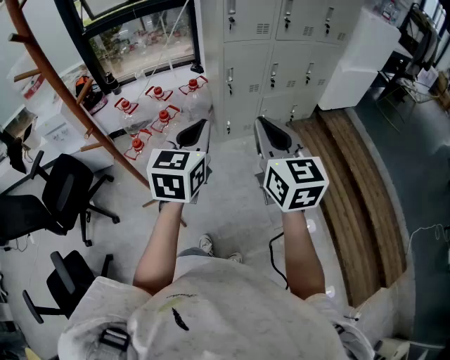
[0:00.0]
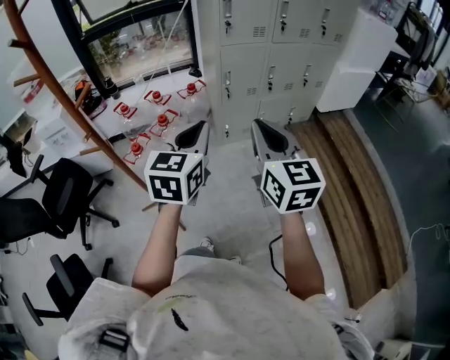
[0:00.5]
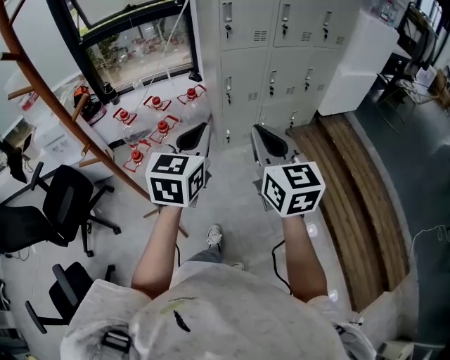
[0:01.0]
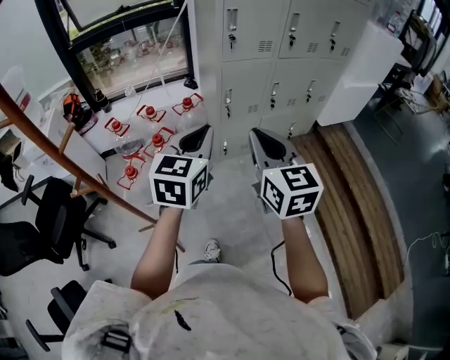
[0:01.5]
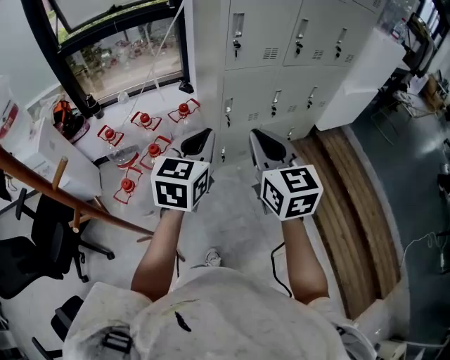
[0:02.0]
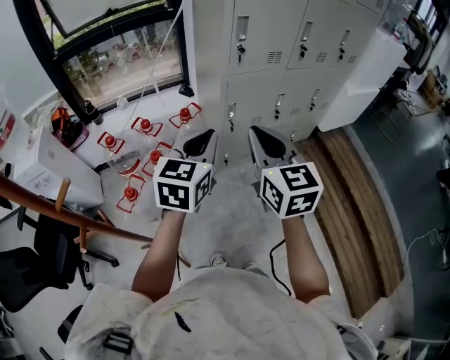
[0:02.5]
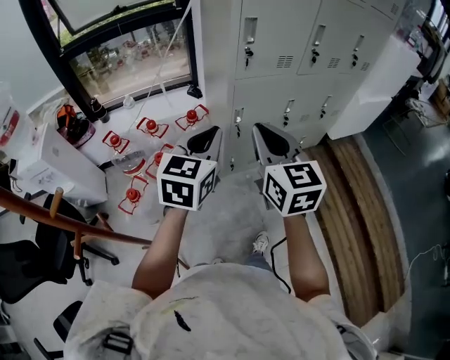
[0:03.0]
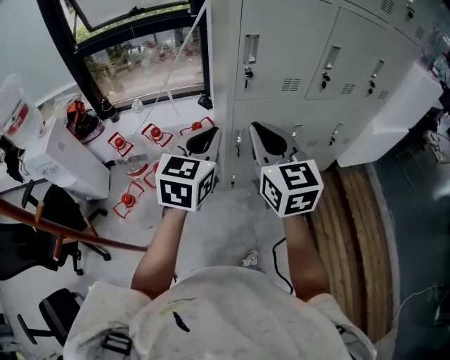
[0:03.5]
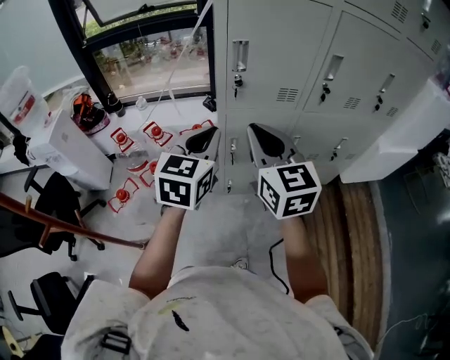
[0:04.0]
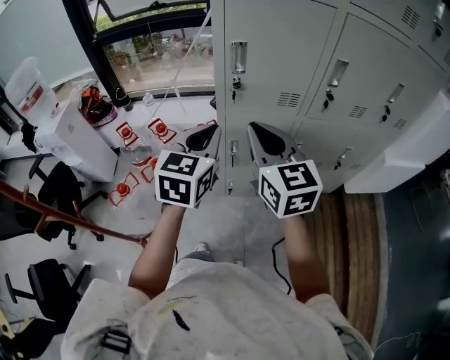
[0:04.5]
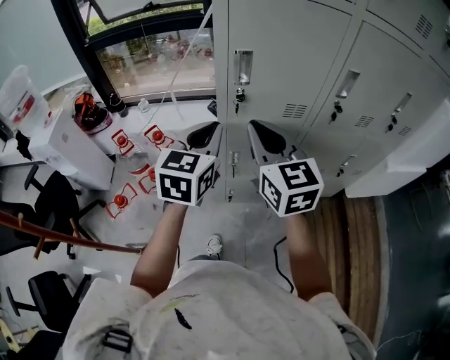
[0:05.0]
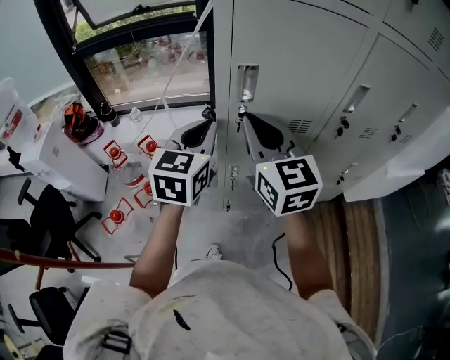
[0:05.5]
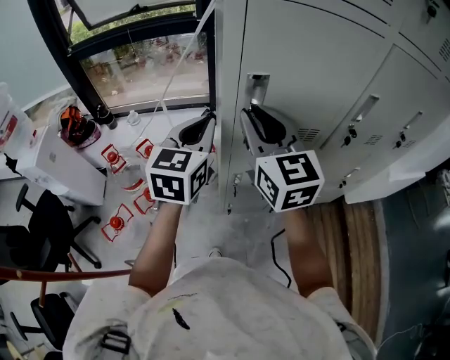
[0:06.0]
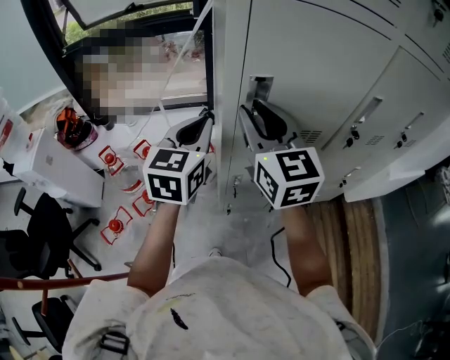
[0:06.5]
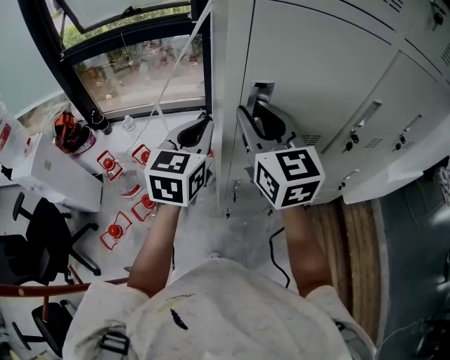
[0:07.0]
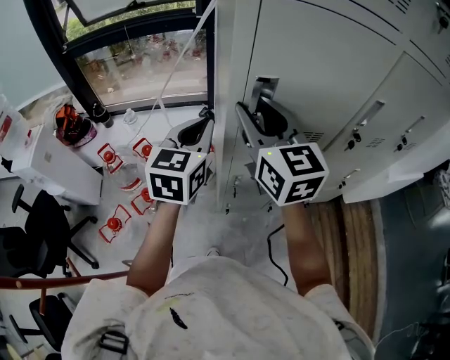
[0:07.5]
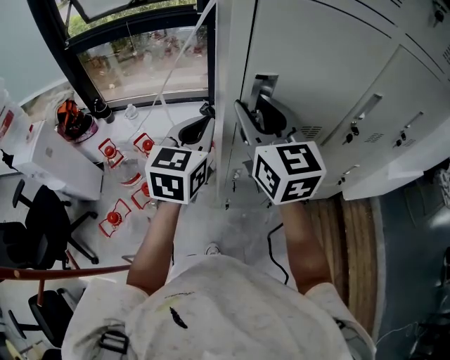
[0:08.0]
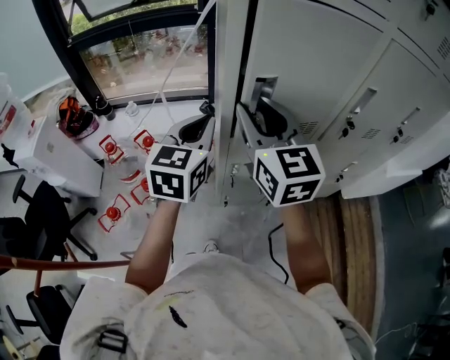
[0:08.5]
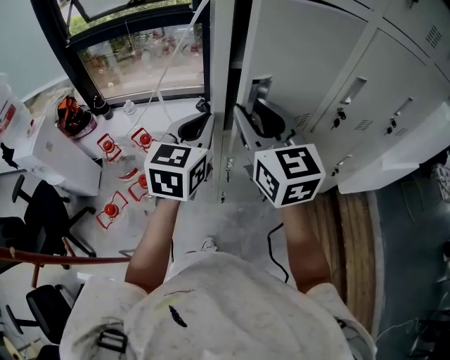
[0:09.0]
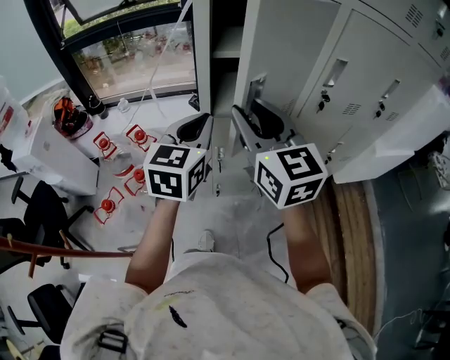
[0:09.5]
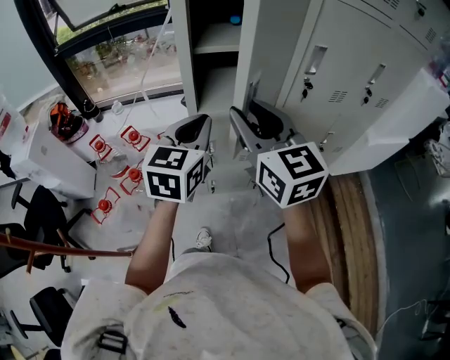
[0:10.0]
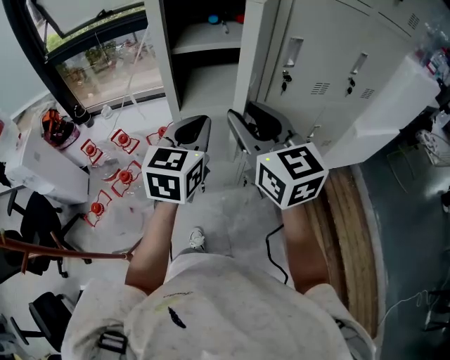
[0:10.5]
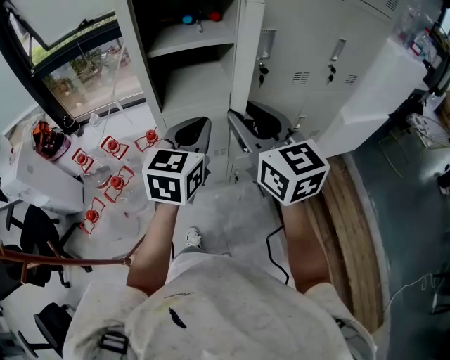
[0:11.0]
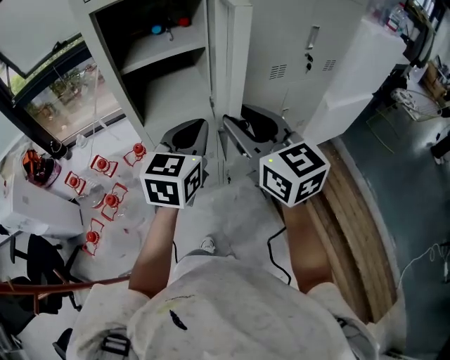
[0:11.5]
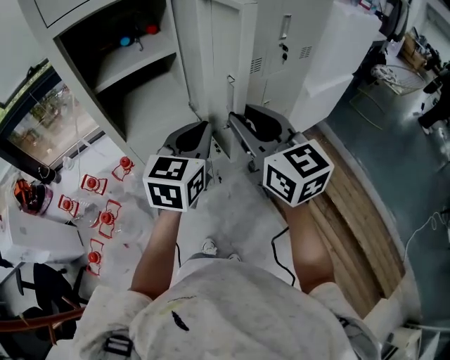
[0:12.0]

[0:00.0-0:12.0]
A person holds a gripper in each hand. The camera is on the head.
0:00.0 to 0:02.0: Both grippers move forward, some 25 cm.
0:02.0 to 0:04.0: The left gripper heads forward and to the right, covering approximately 25 cm, while the right gripper goes roughly 25 cm forward.
0:04.0 to 0:06.0: The grippers both shift forward by about 20 cm.
0:06.0 to 0:08.0: The grippers make only small movements.
0:08.0 to 0:10.0: The grippers both shift backward and to the right by roughly 15 cm.
0:10.0 to 0:12.0: Both grippers travel together to the right, approximately 20 cm. The left gripper changes its angle by some 20 degrees.

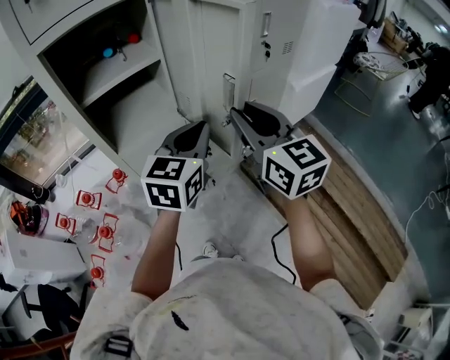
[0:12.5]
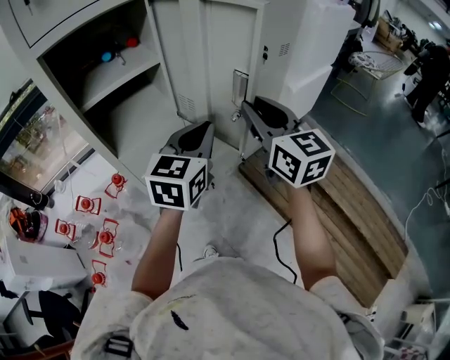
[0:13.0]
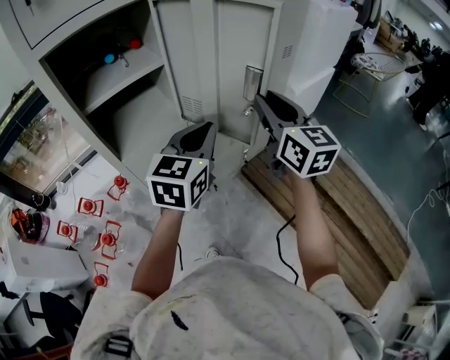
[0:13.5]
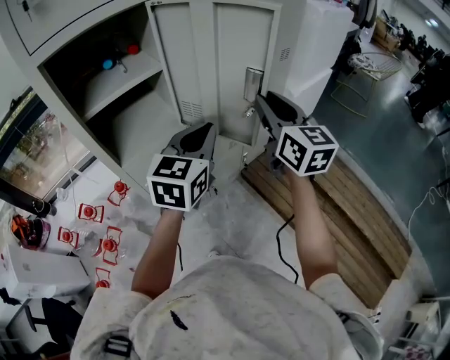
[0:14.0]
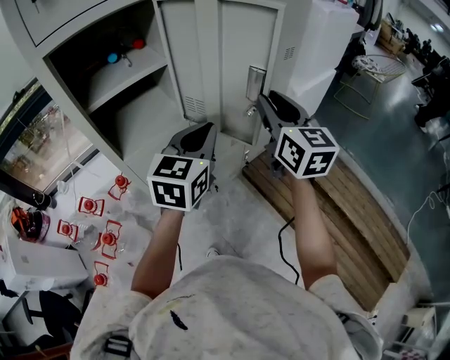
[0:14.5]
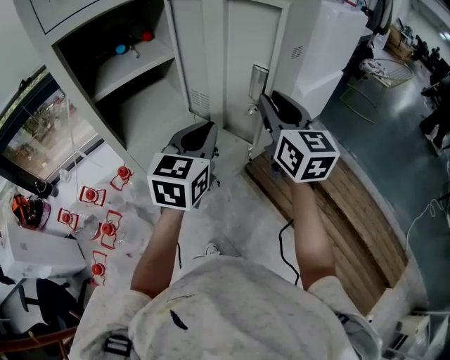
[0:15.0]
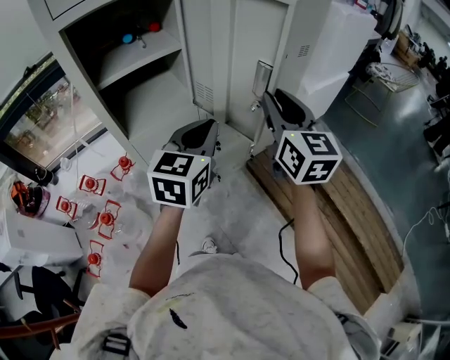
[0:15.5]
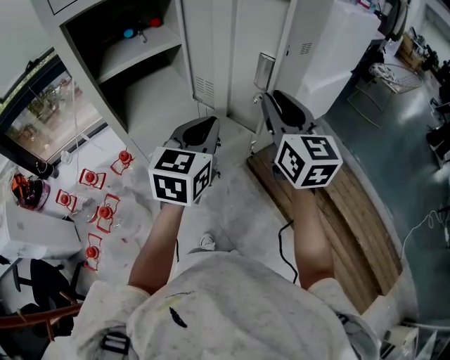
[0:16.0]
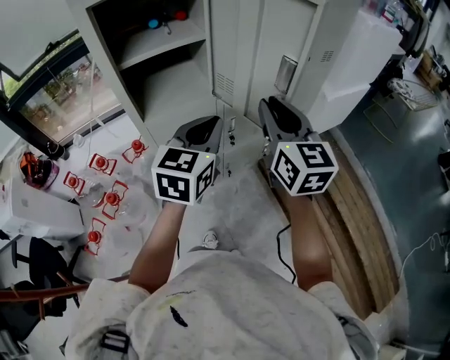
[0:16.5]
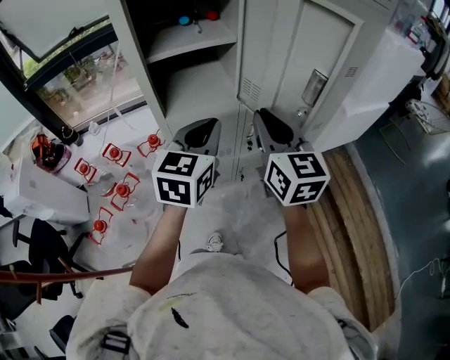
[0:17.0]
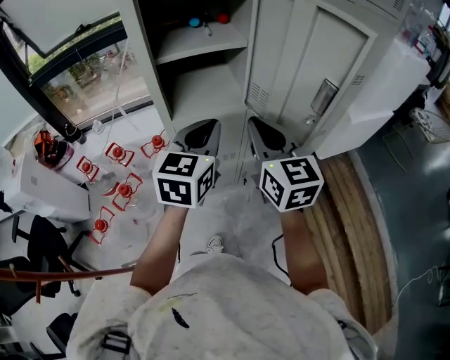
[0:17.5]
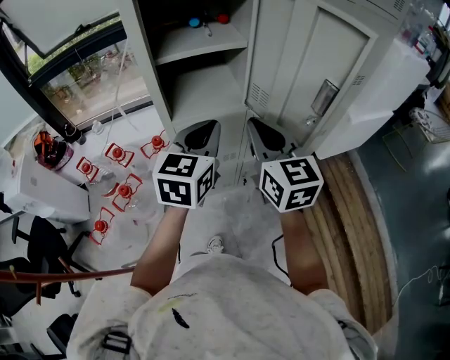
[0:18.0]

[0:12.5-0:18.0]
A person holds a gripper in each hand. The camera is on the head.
0:12.5 to 0:14.5: The right gripper heads forward and to the right, covering about 5 cm.
0:14.5 to 0:16.0: There are only small adjustments of the grippers.
0:16.0 to 0:18.0: Both grippers travel together to the left, roughly 15 cm. The right gripper swivels roughly 20 degrees.

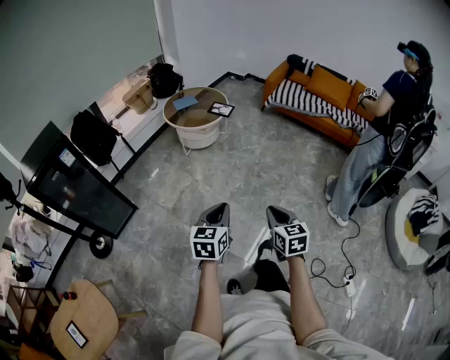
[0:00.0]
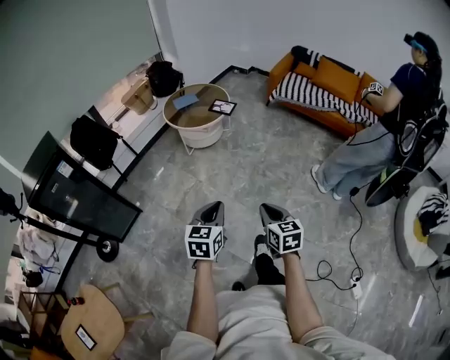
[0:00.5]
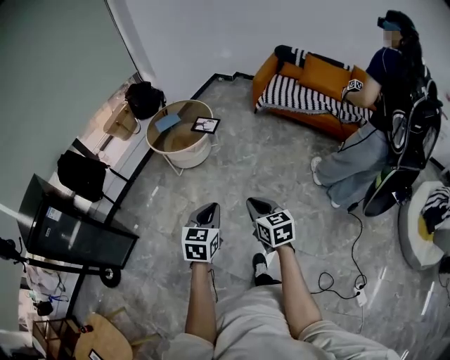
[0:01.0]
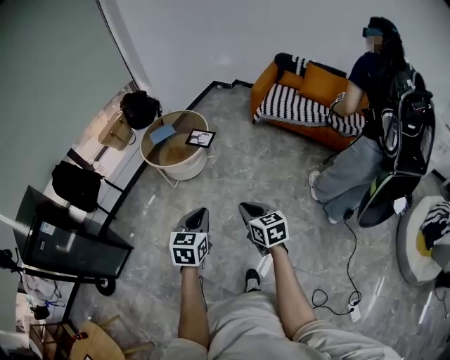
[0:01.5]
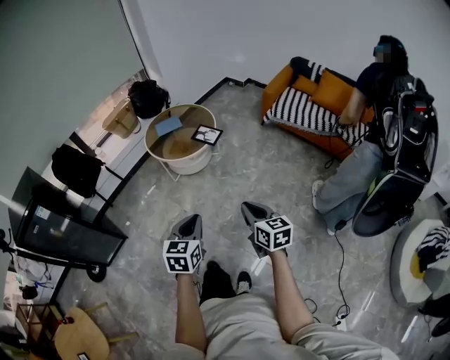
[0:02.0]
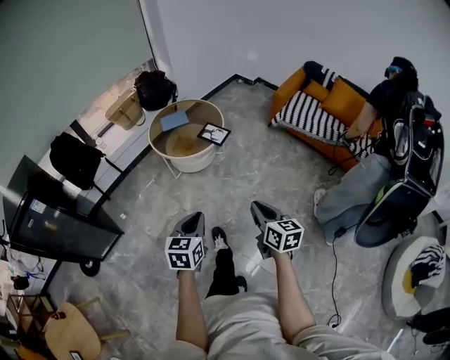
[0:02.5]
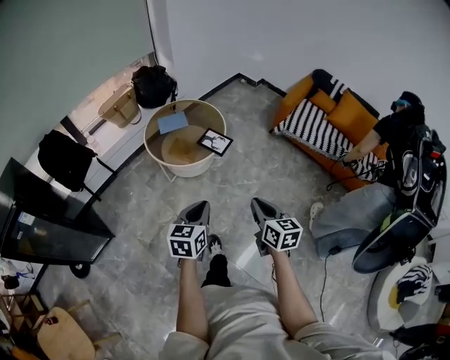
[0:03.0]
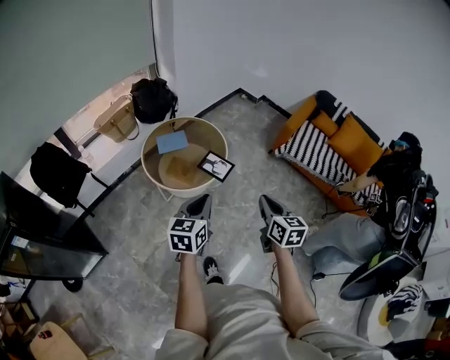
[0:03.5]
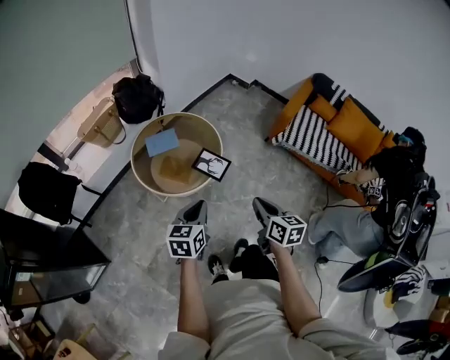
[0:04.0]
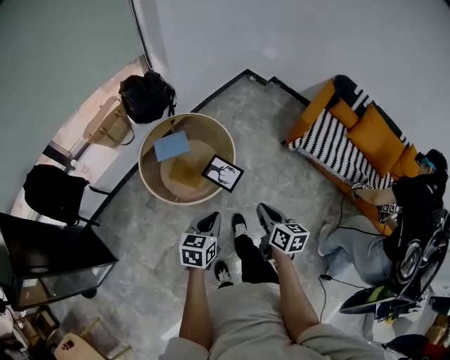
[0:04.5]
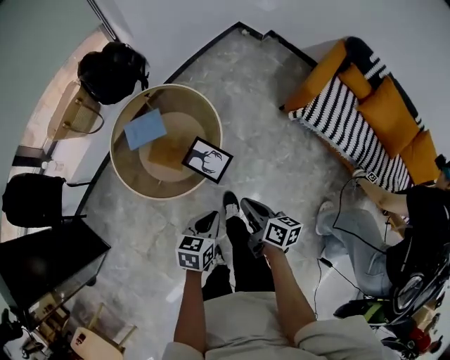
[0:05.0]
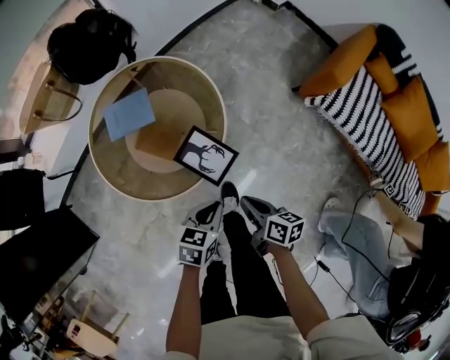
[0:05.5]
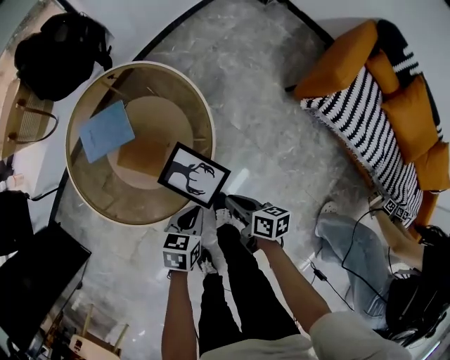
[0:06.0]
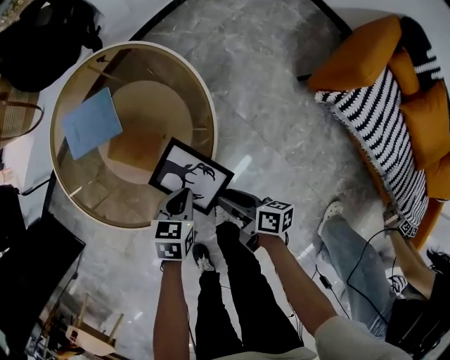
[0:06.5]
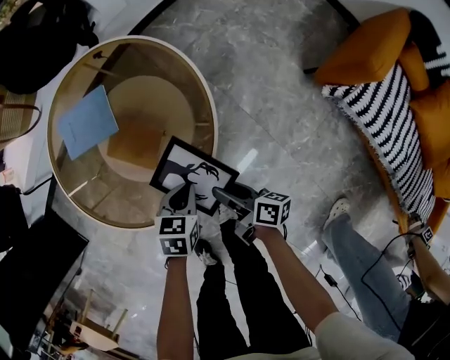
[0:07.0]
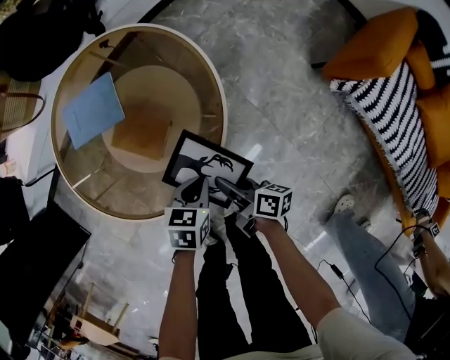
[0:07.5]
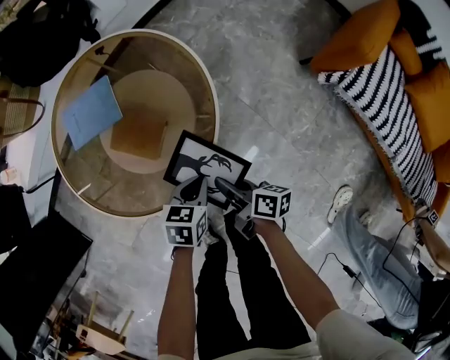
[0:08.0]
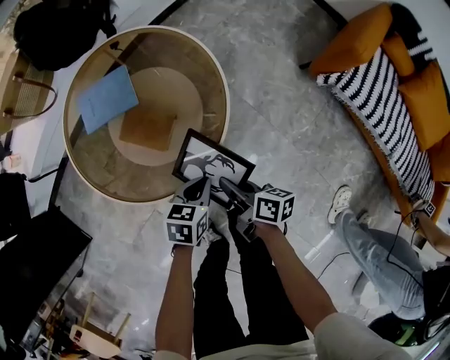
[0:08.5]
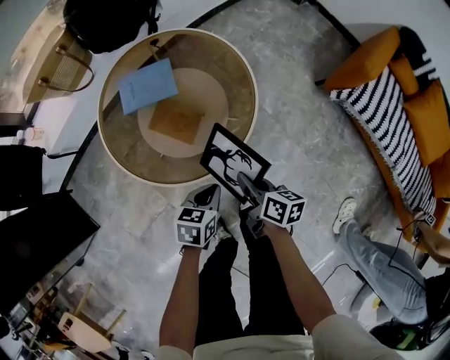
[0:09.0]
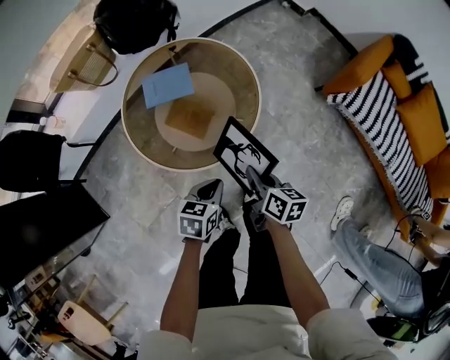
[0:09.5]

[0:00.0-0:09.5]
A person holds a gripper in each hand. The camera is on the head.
0:00.0 to 0:02.0: The left gripper heads forward and to the right, covering roughly 40 cm, while the right gripper goes approximately 40 cm forward.
0:02.0 to 0:04.0: The pair of grippers is taken forward, roughly 50 cm.
0:04.0 to 0:05.5: Both grippers travel together downward and forward, approximately 40 cm. The left gripper changes its angle by roughly 30 degrees; the right gripper turns by roughly 30 degrees.
0:05.5 to 0:07.5: Both grippers travel together downward and forward, approximately 25 cm. The right gripper swivels some 20 degrees, and opens its fingers.
0:07.5 to 0:09.5: The left gripper goes approximately 30 cm upward, backward and to the left. The right gripper is displaced upward and backward by about 25 cm, rotates approximately 30 degrees, and closes.
